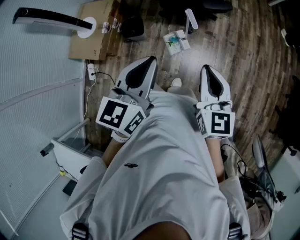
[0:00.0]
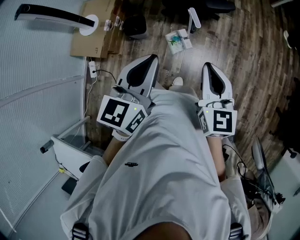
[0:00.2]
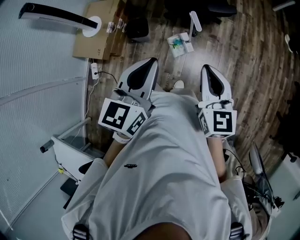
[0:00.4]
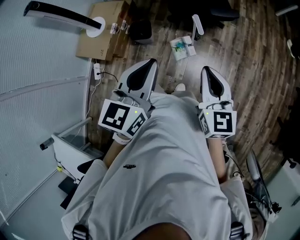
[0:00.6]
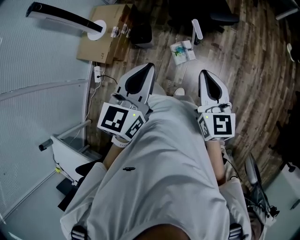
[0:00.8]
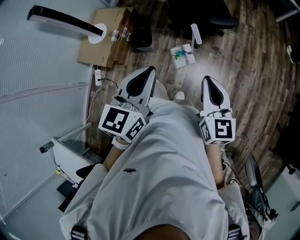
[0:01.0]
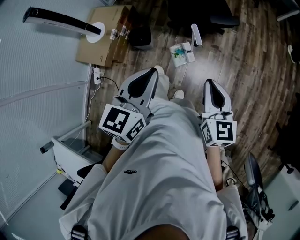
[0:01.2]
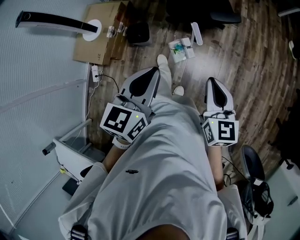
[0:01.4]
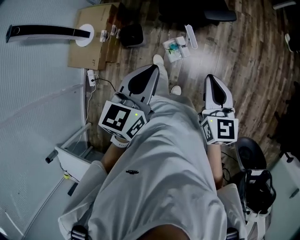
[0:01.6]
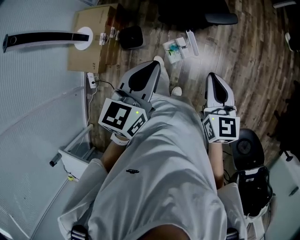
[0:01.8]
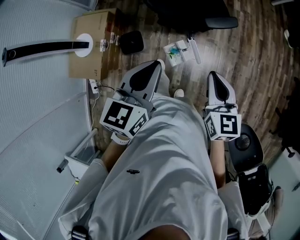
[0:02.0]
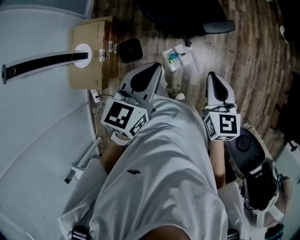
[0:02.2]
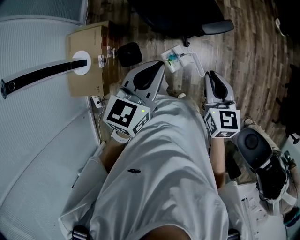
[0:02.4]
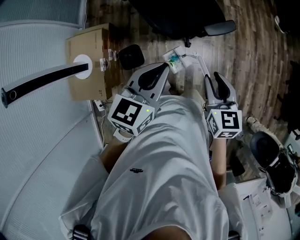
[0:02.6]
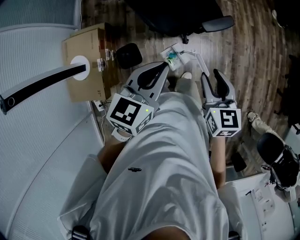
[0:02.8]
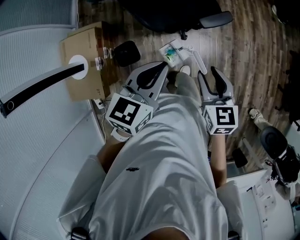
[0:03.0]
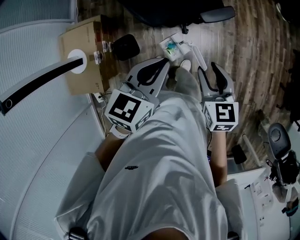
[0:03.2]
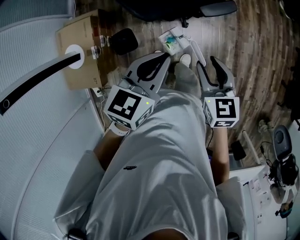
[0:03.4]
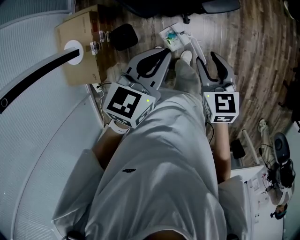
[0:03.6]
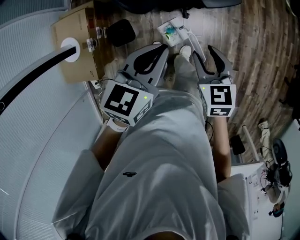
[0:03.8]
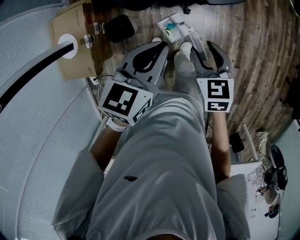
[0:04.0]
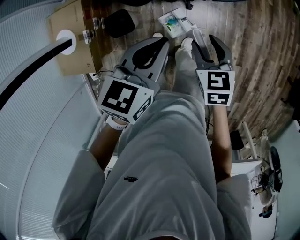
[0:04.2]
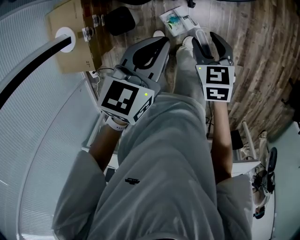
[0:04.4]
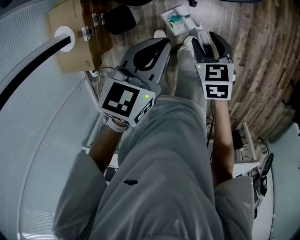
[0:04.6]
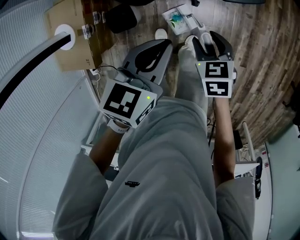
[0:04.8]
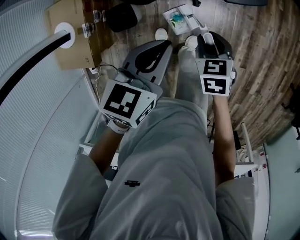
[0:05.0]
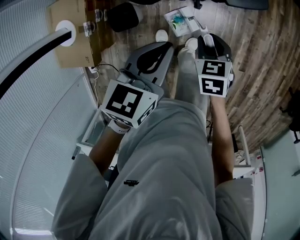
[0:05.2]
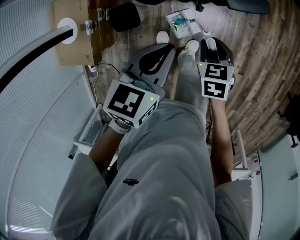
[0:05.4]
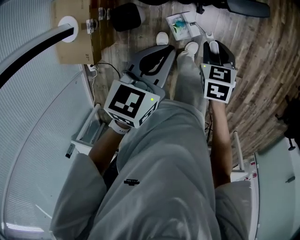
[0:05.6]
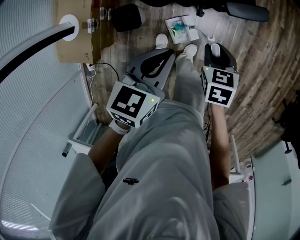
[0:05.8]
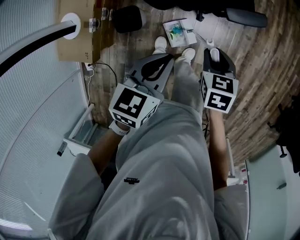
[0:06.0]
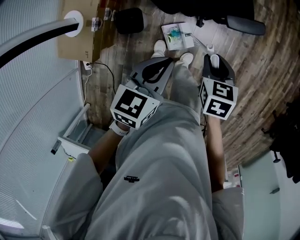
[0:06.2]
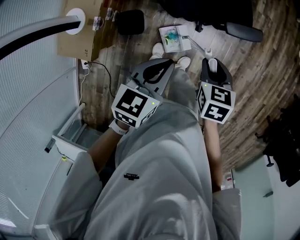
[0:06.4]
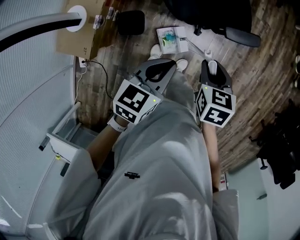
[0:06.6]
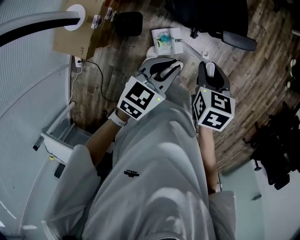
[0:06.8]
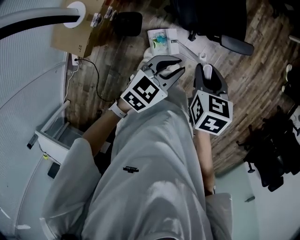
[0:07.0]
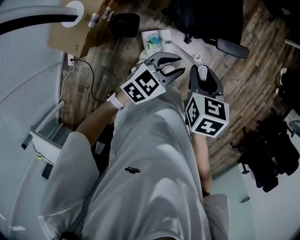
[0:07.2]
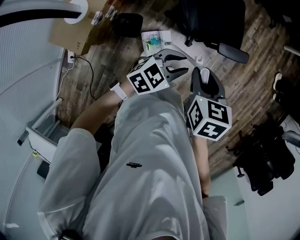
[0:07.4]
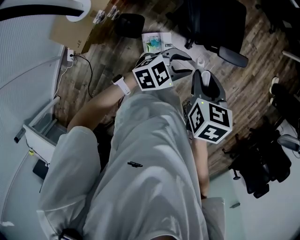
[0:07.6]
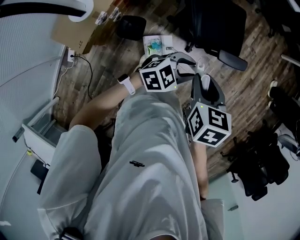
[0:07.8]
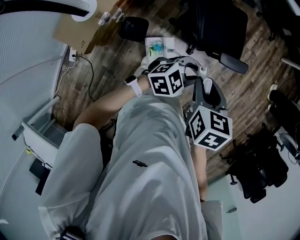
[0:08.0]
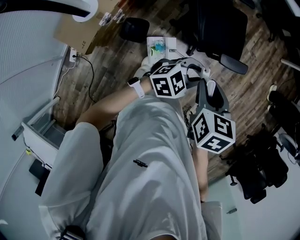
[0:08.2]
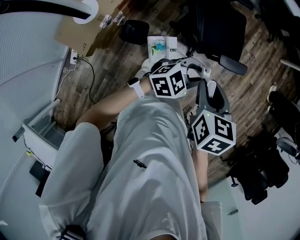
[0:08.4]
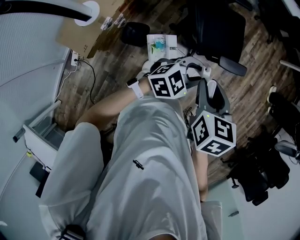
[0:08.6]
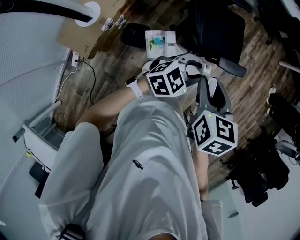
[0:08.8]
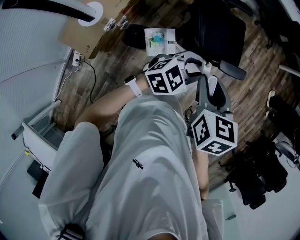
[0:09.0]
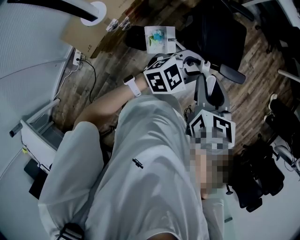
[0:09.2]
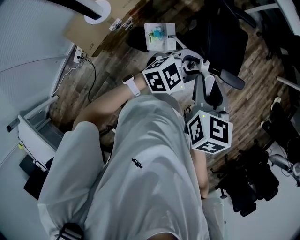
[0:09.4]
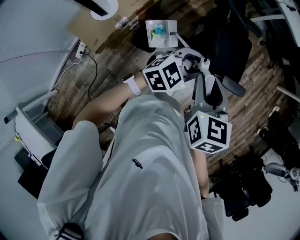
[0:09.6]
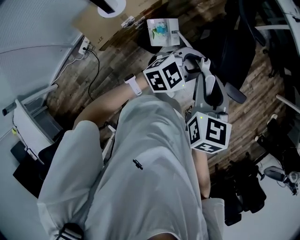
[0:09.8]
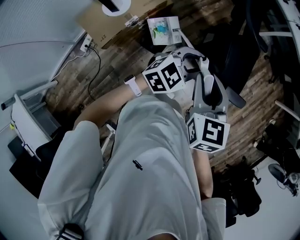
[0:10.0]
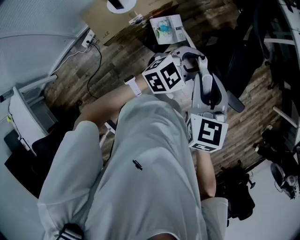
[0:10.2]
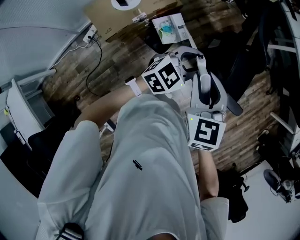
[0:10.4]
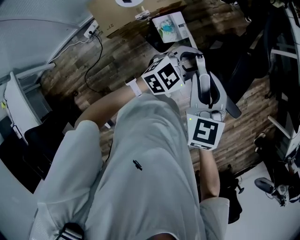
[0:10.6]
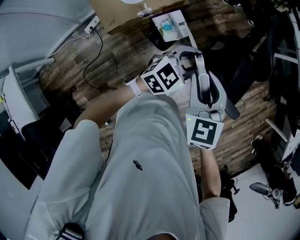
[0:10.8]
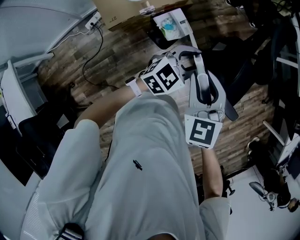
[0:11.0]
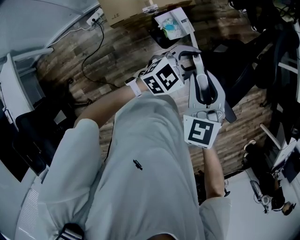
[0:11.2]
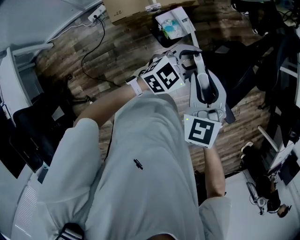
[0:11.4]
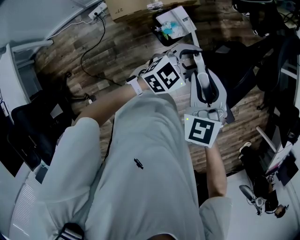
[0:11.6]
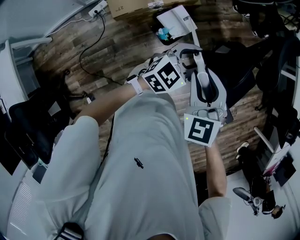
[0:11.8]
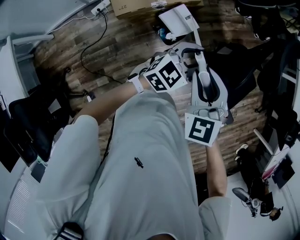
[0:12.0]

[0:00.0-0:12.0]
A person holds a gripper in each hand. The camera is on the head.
0:00.0 to 0:01.6: The grippers both shift forward by roughly 10 cm.
0:01.6 to 0:03.0: The left gripper heads forward, covering approximately 20 cm, and turns by some 20 degrees. Meanwhile the right gripper moves forward and to the left, roughly 20 cm, and opens.
0:03.0 to 0:04.4: Both grippers travel together downward, roughly 15 cm.
0:04.4 to 0:06.0: The right gripper closes its fingers.
0:06.0 to 0:07.6: The right gripper is displaced upward and to the left by some 20 cm. The left gripper changes its angle by roughly 30 degrees, and opens.
0:07.6 to 0:09.0: The grippers both shift upward by roughly 10 cm.
0:09.0 to 0:10.4: The right gripper changes place by roughly 15 cm, and rotates about 40 degrees; the left gripper changes place by roughly 20 cm, and turns by approximately 30 degrees.
0:10.4 to 0:12.0: The grippers both shift to the left by roughly 5 cm. The left gripper swivels approximately 20 degrees, while the right gripper turns by roughly 30 degrees.

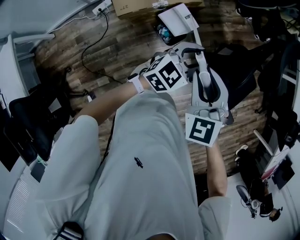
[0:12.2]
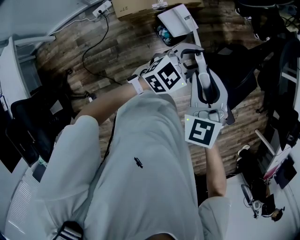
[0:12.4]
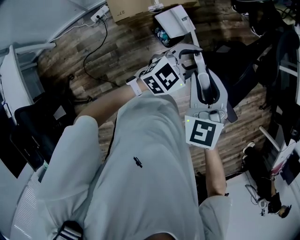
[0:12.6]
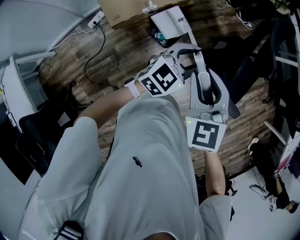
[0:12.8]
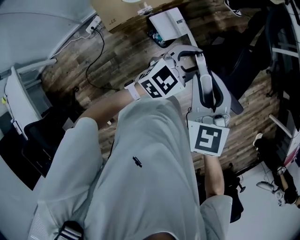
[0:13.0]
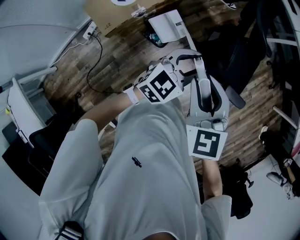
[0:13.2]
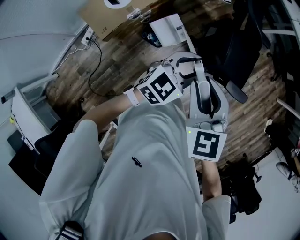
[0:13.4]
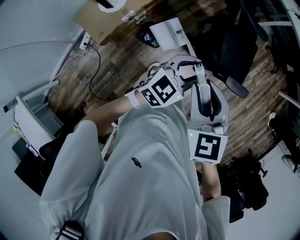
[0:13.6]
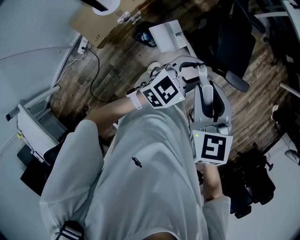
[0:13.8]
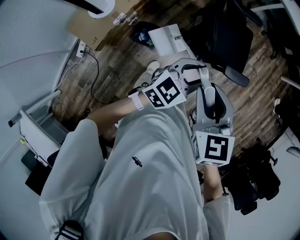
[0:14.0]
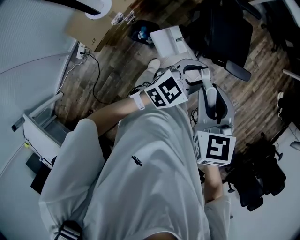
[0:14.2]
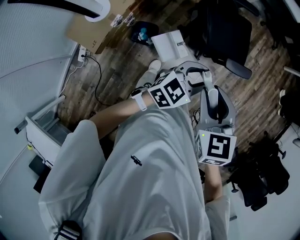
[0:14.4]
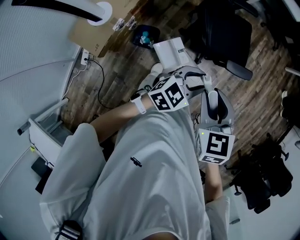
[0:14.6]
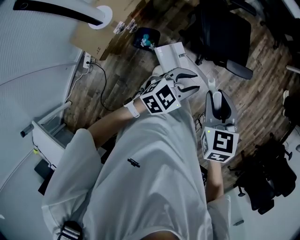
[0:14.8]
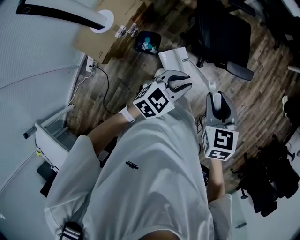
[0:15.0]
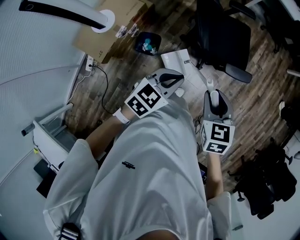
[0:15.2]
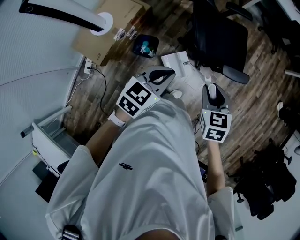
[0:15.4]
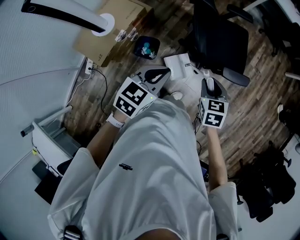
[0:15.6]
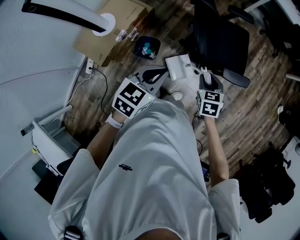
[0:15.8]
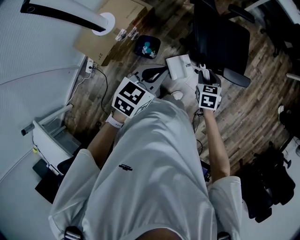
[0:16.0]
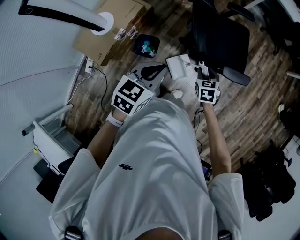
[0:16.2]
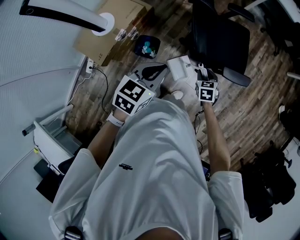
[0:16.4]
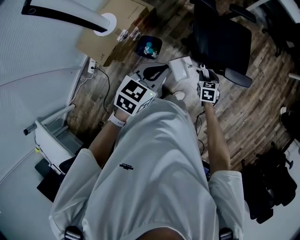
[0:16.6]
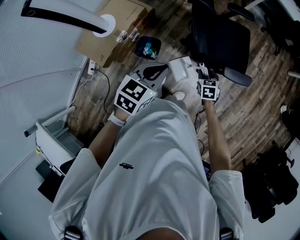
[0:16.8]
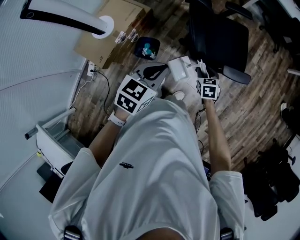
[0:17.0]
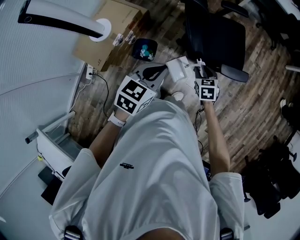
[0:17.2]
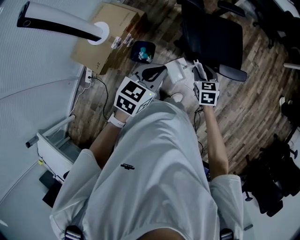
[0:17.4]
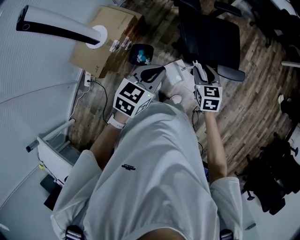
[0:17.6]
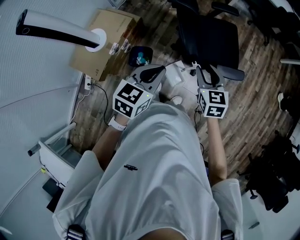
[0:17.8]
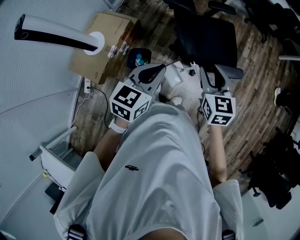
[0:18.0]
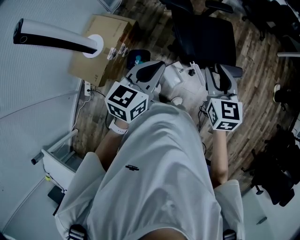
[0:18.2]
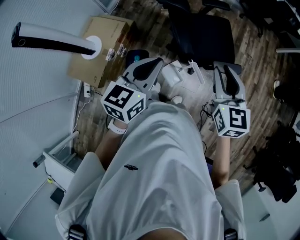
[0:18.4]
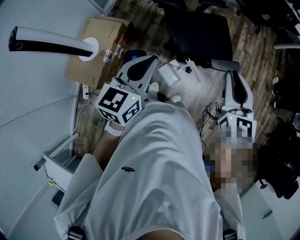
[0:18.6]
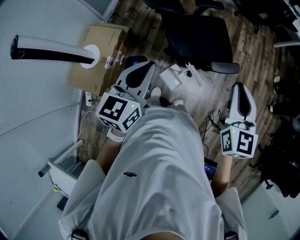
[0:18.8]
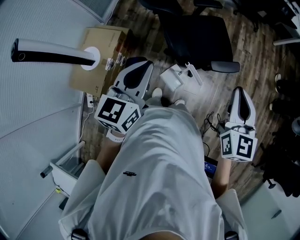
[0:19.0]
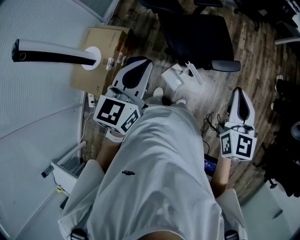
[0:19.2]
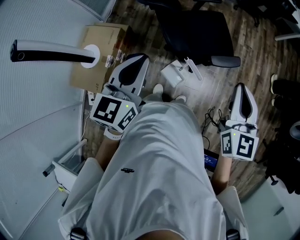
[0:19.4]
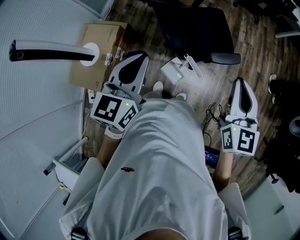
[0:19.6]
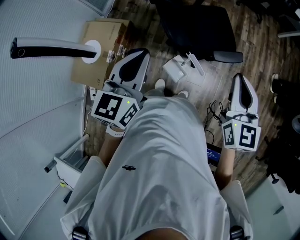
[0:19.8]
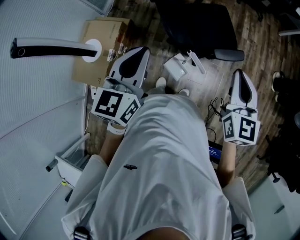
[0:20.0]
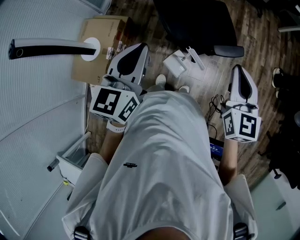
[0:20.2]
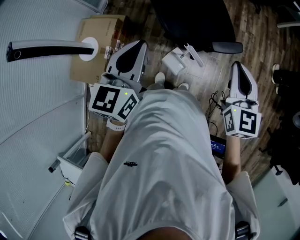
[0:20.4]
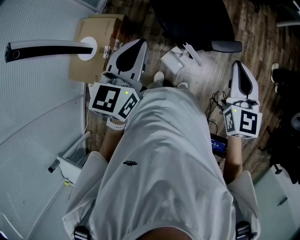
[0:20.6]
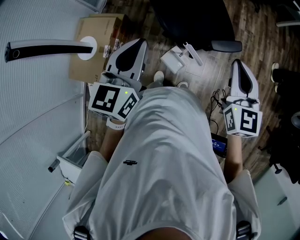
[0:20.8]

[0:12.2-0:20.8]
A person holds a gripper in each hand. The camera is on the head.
0:12.2 to 0:13.6: Both grippers travel together to the right, some 10 cm. The right gripper turns by approximately 40 degrees. The left gripper rotates some 20 degrees.
0:13.6 to 0:15.0: The left gripper goes roughly 10 cm to the right and backward, and turns by about 20 degrees; the right gripper heads to the right, covering about 15 cm, and changes its angle by some 20 degrees.
0:15.0 to 0:16.6: The left gripper travels to the left by roughly 10 cm, and turns by roughly 20 degrees, while the right gripper shifts about 30 cm downward.
0:16.6 to 0:18.0: The right gripper goes approximately 25 cm upward, and swivels approximately 30 degrees, while the left gripper is displaced upward by about 5 cm.
0:18.0 to 0:19.4: The right gripper heads to the right and upward, covering roughly 20 cm, swivels roughly 20 degrees, and closes up. Meanwhile the left gripper travels upward by about 10 cm.
0:19.4 to 0:20.8: The grippers move only a little.

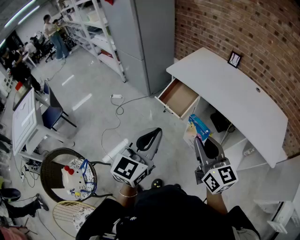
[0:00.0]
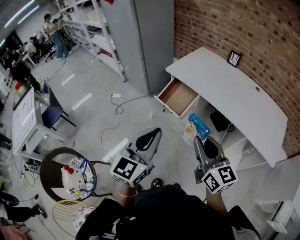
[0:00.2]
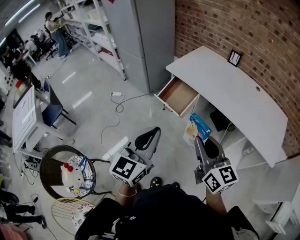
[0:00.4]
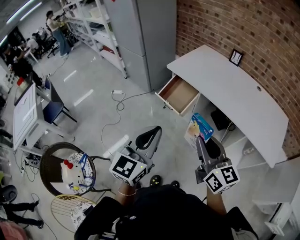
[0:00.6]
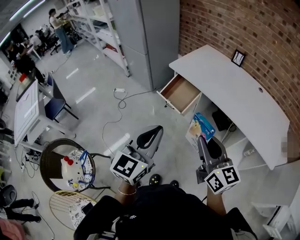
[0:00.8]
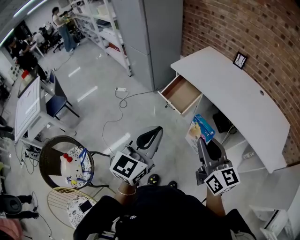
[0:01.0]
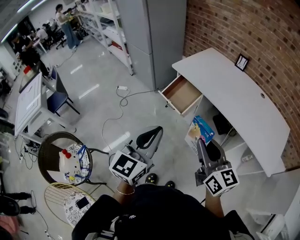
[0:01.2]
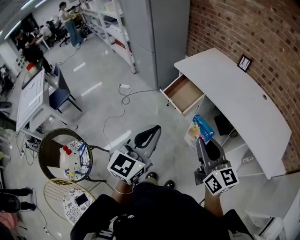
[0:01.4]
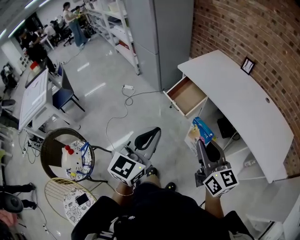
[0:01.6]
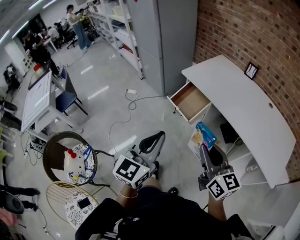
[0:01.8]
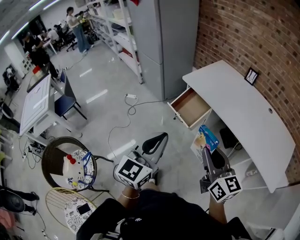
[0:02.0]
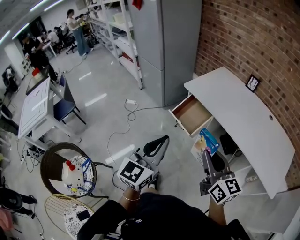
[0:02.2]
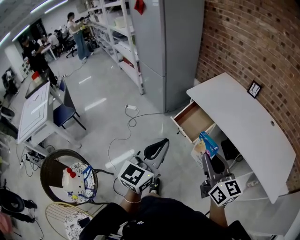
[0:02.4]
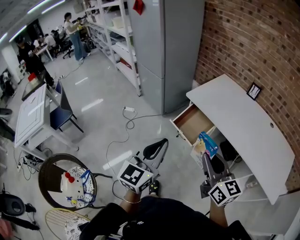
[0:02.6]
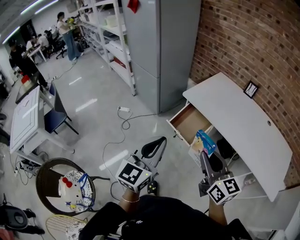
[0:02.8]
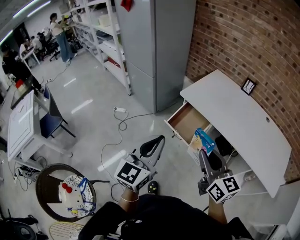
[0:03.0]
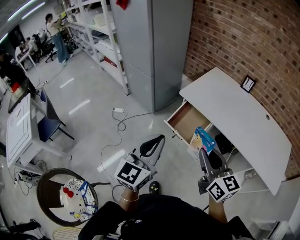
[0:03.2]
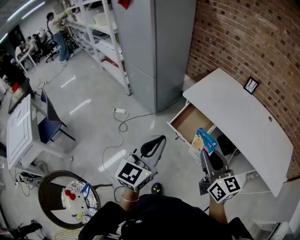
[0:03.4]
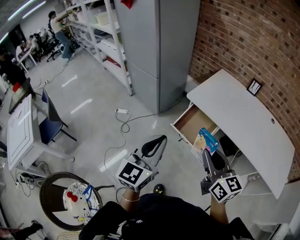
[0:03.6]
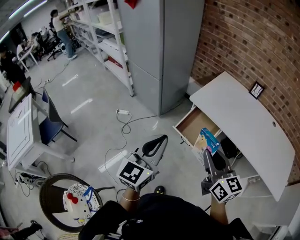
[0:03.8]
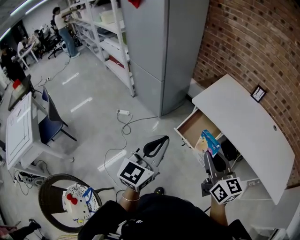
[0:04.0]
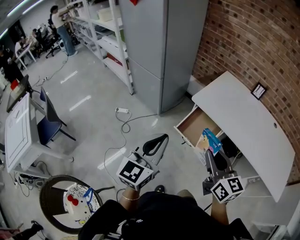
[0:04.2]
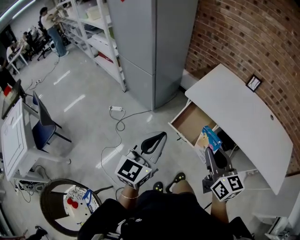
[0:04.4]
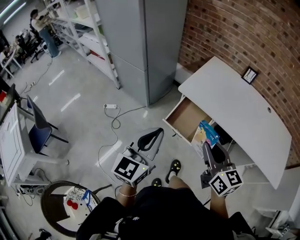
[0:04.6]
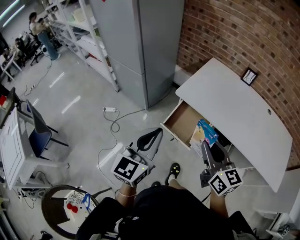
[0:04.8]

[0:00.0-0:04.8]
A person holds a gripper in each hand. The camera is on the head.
0:00.0 to 0:01.6: The grippers make only small movements.
0:01.6 to 0:03.2: Both grippers travel together forward and to the left, about 25 cm.
0:03.2 to 0:04.8: The grippers both shift forward by about 15 cm.
